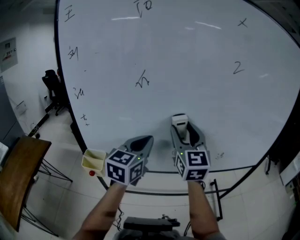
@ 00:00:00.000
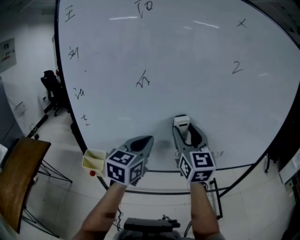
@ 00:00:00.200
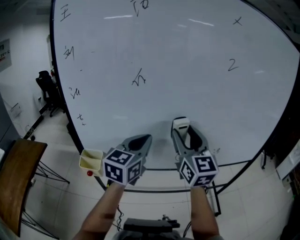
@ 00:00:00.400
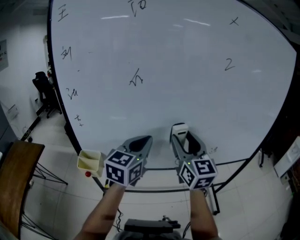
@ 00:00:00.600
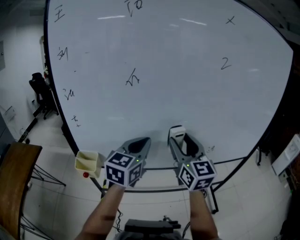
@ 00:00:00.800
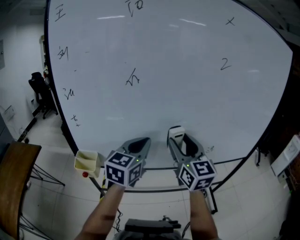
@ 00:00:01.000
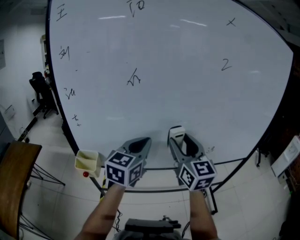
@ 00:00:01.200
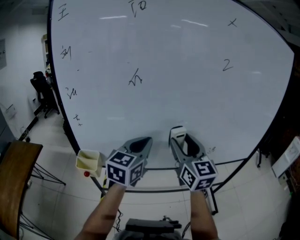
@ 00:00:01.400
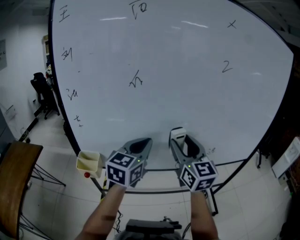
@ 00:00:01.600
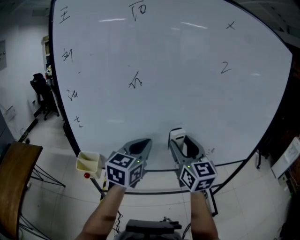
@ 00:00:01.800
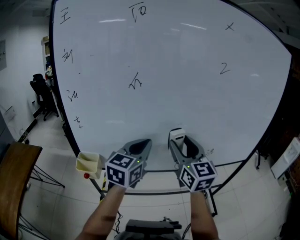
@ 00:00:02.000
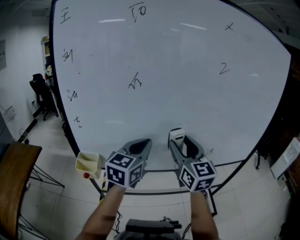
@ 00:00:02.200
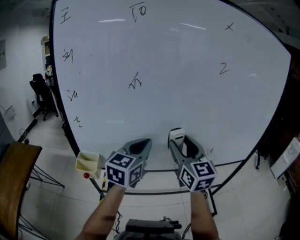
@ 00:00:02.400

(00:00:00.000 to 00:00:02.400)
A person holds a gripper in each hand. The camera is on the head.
00:00:00.000 - 00:00:01.200: The right gripper changes place by approximately 5 cm.
00:00:01.200 - 00:00:02.400: Neither gripper changes place.

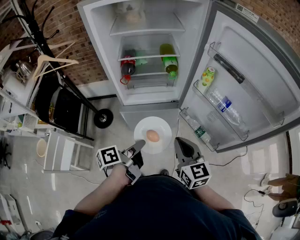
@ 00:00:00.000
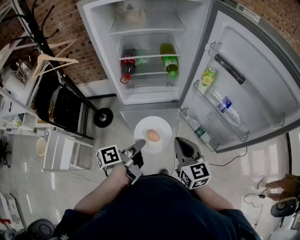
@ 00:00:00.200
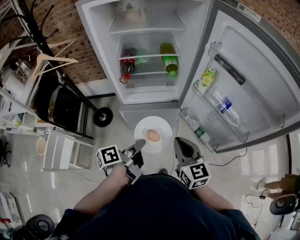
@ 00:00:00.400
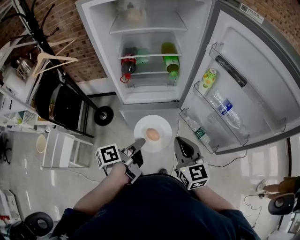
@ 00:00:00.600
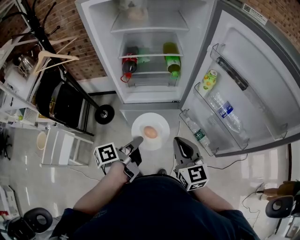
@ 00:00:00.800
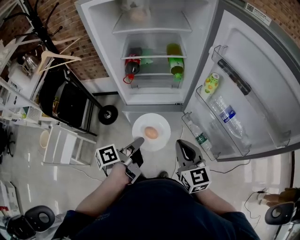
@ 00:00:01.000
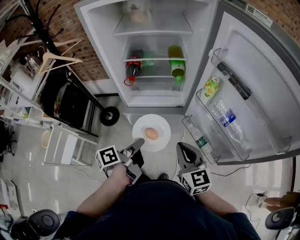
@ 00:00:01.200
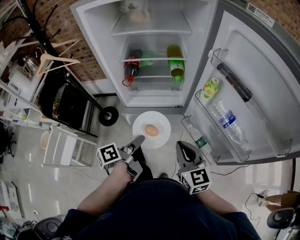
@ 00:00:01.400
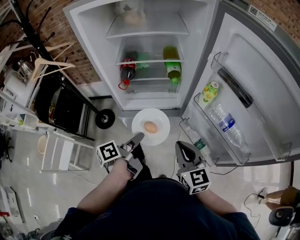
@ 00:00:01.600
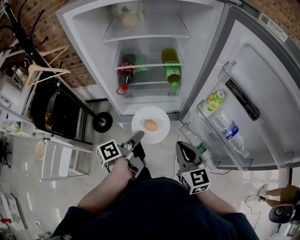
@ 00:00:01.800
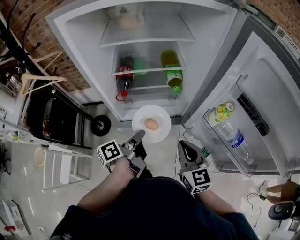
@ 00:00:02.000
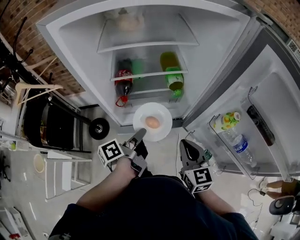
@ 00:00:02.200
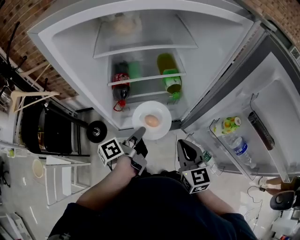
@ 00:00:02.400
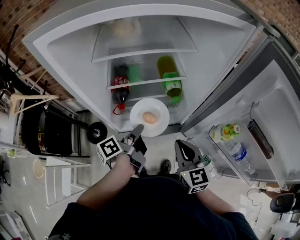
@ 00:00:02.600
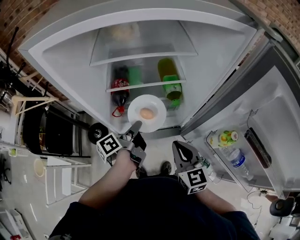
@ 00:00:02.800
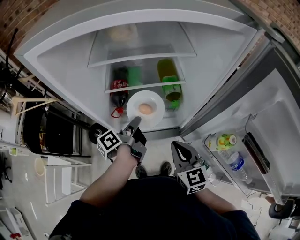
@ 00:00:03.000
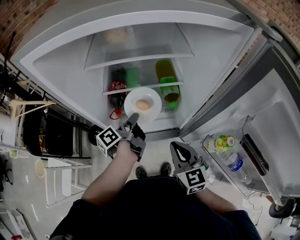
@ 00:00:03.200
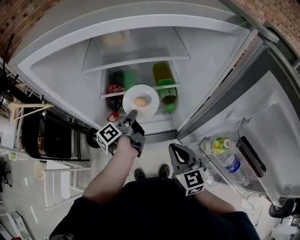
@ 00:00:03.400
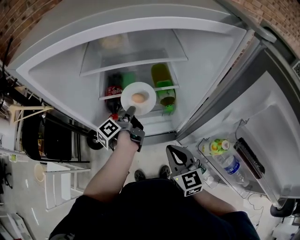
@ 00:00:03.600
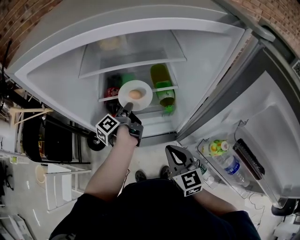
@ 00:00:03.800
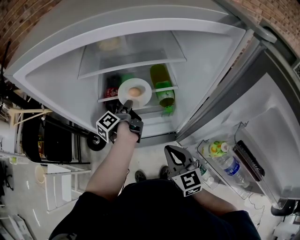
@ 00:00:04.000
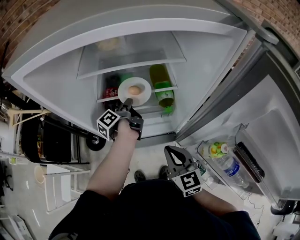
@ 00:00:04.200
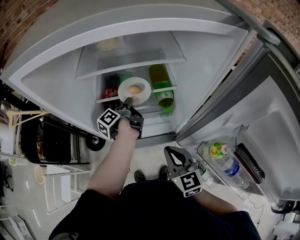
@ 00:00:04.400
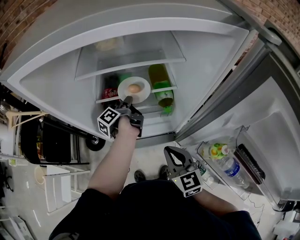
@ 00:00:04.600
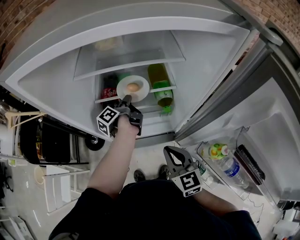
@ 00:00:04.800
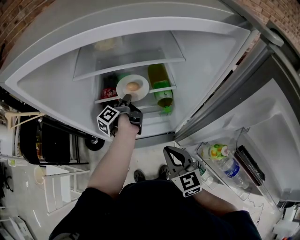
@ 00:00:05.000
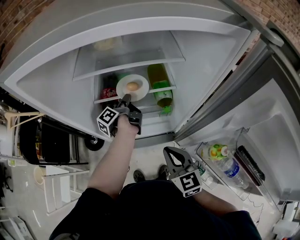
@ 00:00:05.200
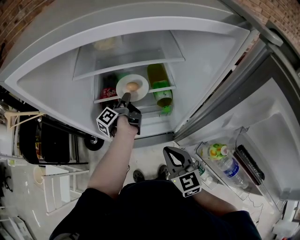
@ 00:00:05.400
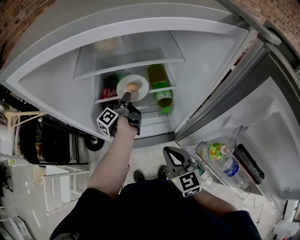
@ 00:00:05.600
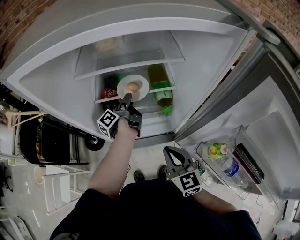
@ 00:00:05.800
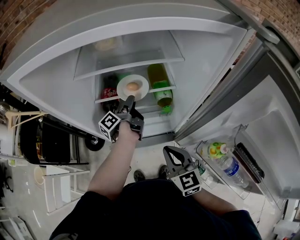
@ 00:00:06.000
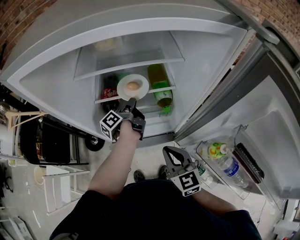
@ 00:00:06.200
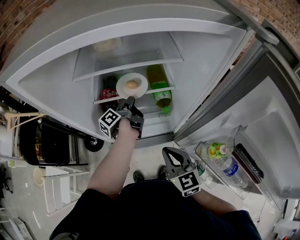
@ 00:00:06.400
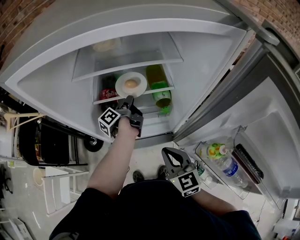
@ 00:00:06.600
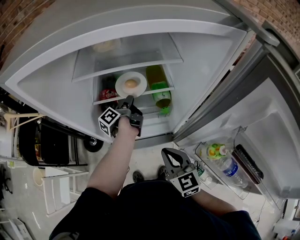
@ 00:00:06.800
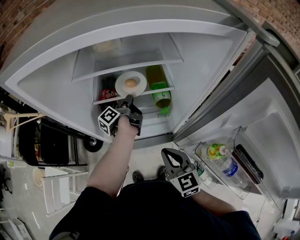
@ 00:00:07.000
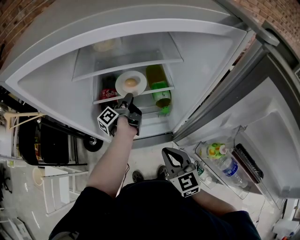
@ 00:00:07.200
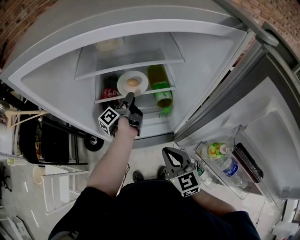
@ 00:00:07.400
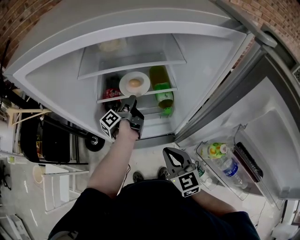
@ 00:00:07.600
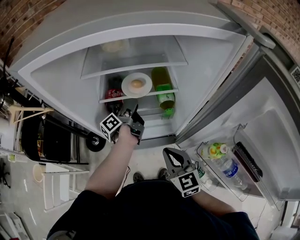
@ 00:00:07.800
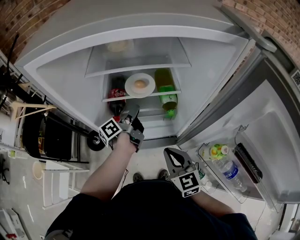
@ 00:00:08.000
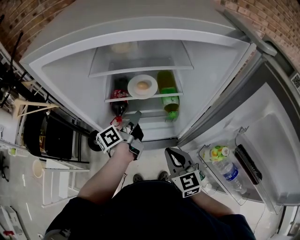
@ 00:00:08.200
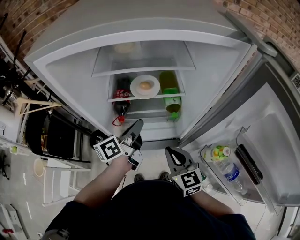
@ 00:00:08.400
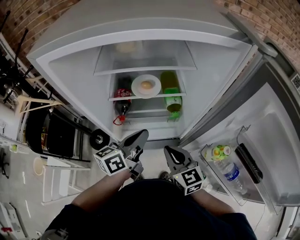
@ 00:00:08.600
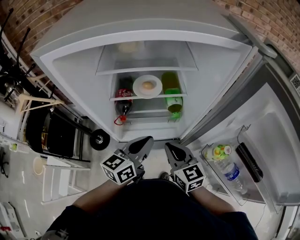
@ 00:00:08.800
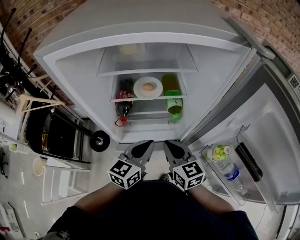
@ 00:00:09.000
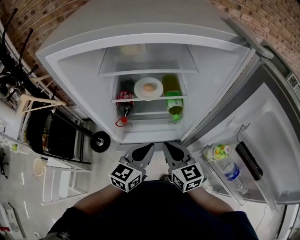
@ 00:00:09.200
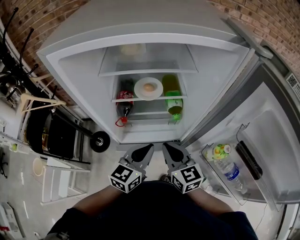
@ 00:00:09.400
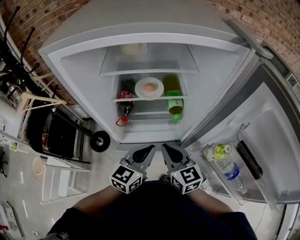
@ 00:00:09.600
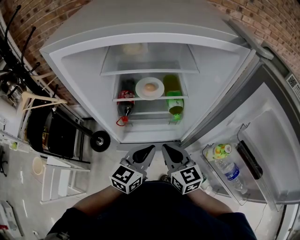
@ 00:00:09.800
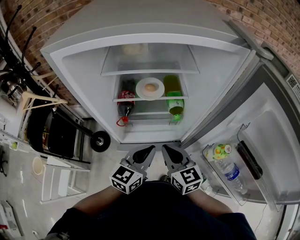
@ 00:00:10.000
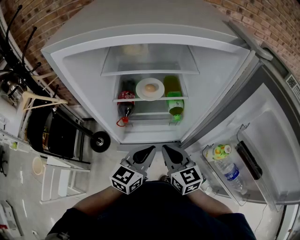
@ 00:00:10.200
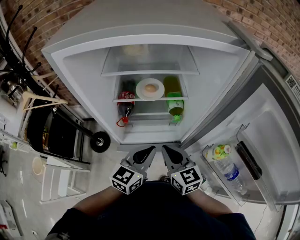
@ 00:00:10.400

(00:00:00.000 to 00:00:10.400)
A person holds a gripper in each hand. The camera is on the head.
00:00:00.000 - 00:00:01.400: The right gripper ends up roughly 5 cm from where it was.
00:00:01.400 - 00:00:03.000: The right gripper ends up approximately 20 cm from where it was.
00:00:07.400 - 00:00:09.000: The right gripper changes place by about 5 cm.

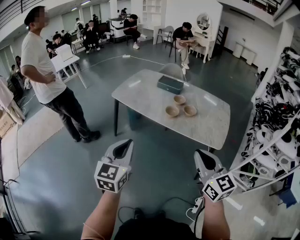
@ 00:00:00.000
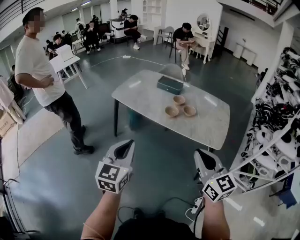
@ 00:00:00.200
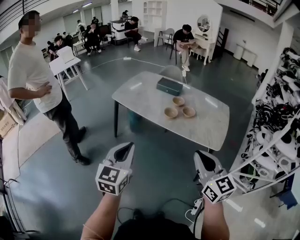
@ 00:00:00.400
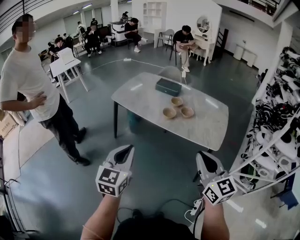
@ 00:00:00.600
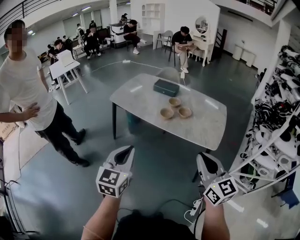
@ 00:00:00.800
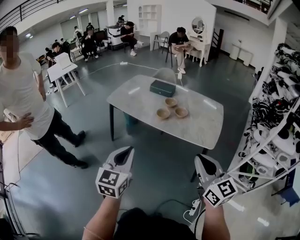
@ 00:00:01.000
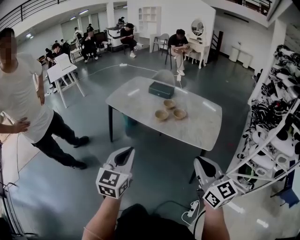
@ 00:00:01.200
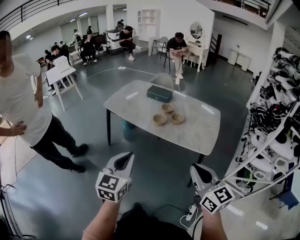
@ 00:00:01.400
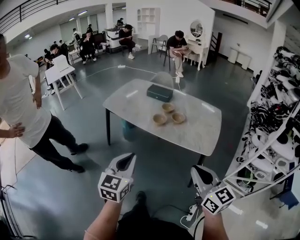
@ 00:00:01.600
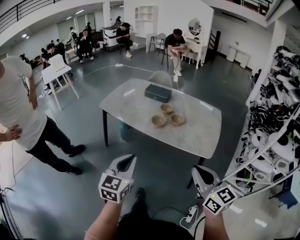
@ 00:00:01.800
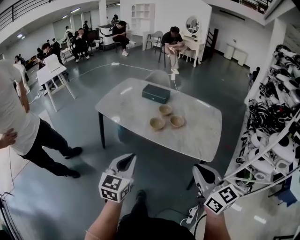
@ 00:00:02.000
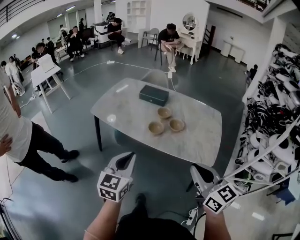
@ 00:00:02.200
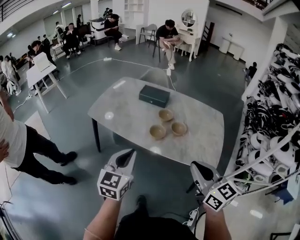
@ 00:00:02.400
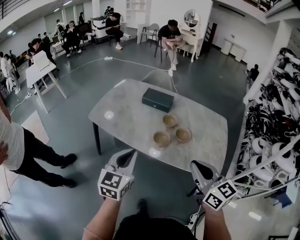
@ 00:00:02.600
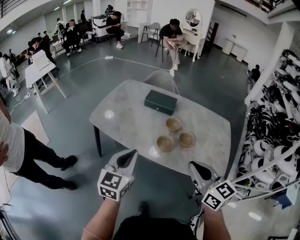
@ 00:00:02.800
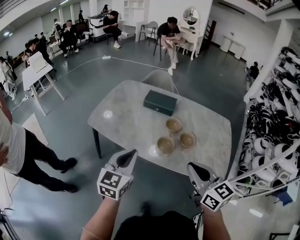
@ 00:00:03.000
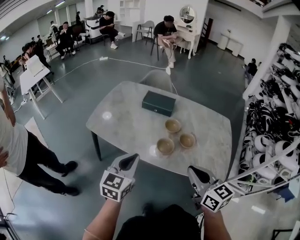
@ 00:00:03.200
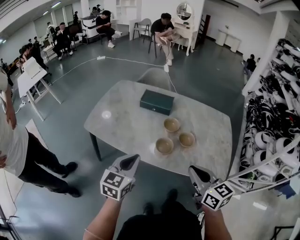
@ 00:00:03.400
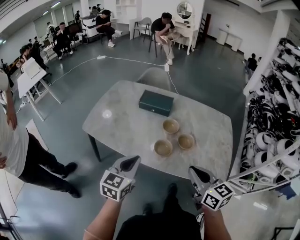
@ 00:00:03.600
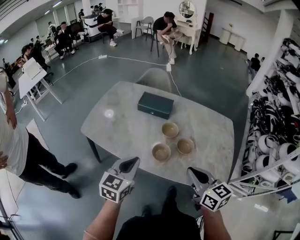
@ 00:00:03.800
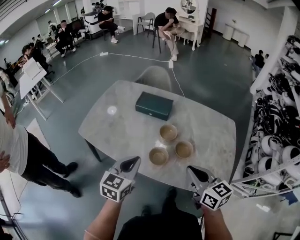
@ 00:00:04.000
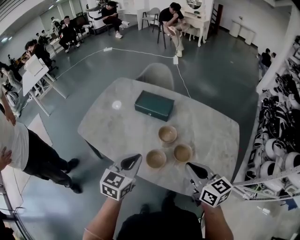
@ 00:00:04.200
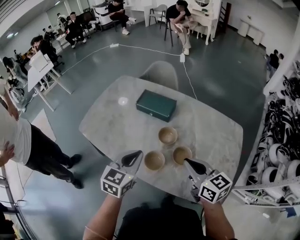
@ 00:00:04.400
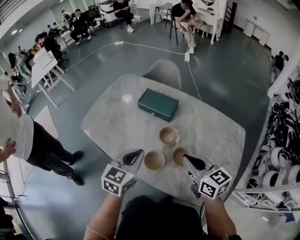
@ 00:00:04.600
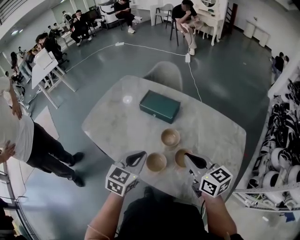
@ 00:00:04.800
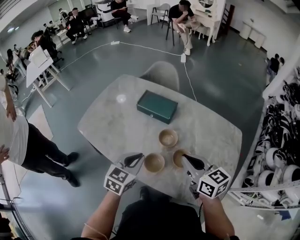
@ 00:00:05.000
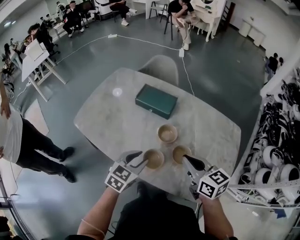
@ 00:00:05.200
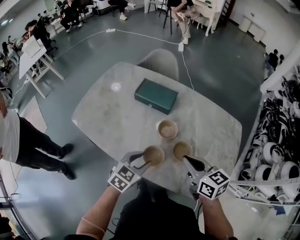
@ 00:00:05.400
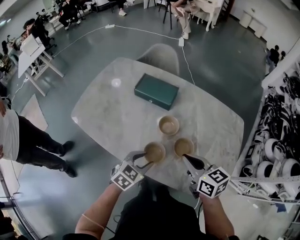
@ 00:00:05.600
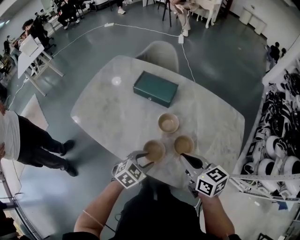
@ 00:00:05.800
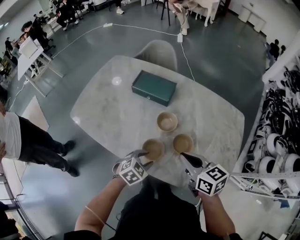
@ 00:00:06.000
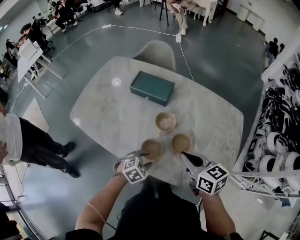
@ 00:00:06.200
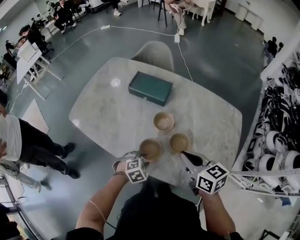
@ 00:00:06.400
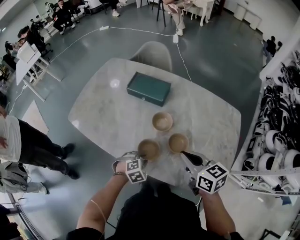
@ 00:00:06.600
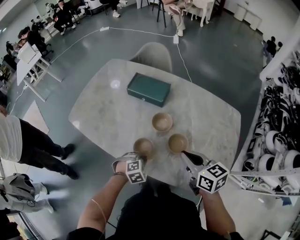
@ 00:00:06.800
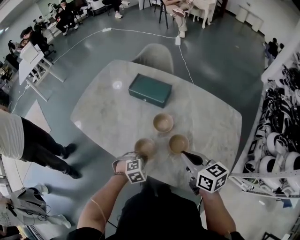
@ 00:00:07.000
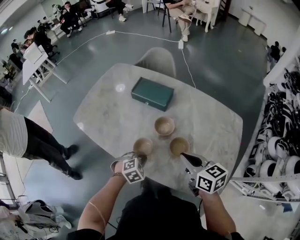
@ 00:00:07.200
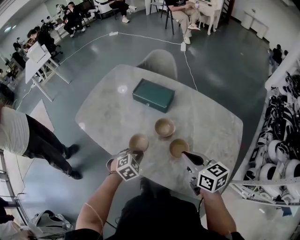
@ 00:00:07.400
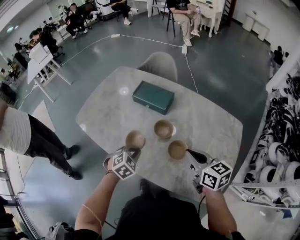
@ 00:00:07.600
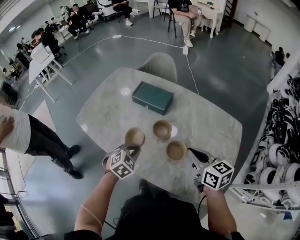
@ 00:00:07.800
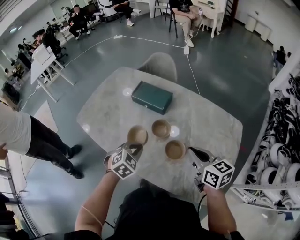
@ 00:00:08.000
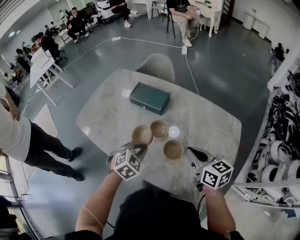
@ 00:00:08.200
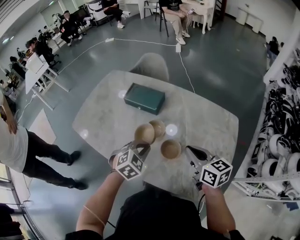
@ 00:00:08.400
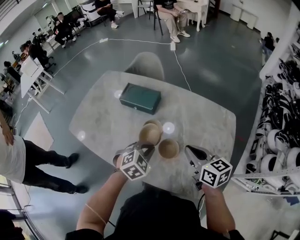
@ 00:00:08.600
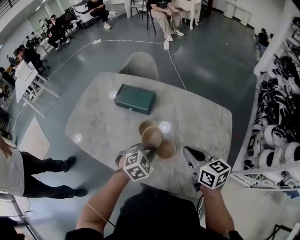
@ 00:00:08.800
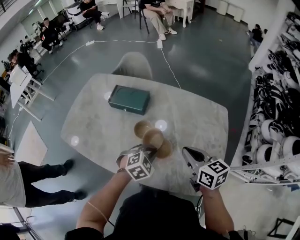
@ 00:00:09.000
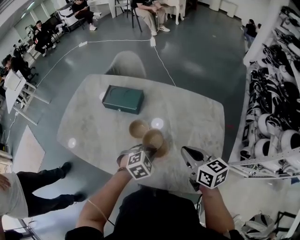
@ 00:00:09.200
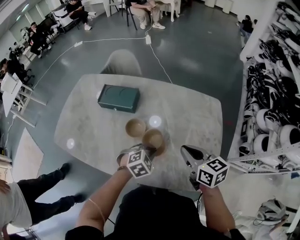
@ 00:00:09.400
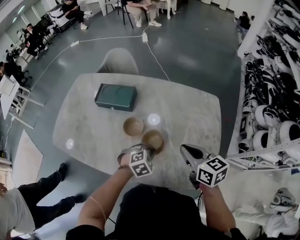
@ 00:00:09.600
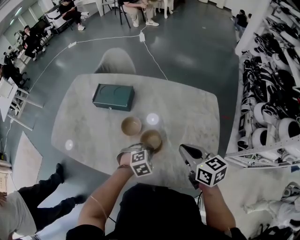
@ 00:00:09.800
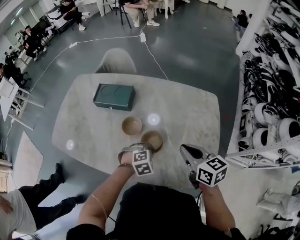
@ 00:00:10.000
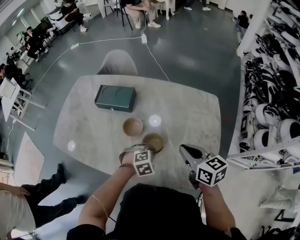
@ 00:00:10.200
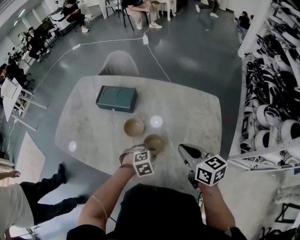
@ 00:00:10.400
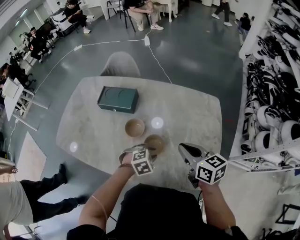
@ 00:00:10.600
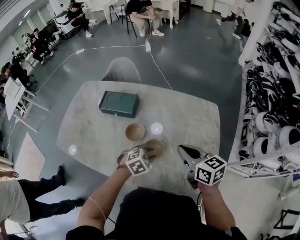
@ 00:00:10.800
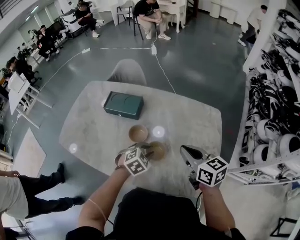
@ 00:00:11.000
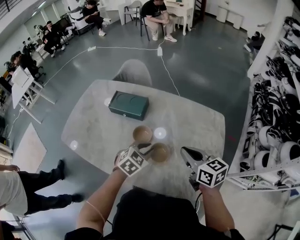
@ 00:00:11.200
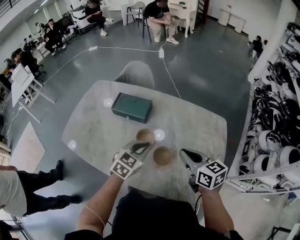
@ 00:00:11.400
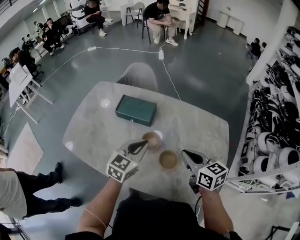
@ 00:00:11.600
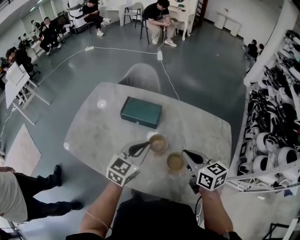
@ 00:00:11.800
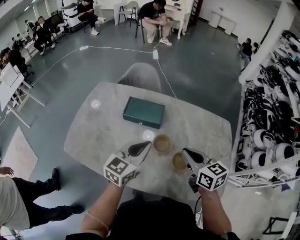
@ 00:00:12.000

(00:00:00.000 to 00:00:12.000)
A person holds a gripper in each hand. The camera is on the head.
00:00:00.000 - 00:00:01.600: Both grippers move to the right, approximately 10 cm.
00:00:01.600 - 00:00:03.000: Both grippers are carried forward, some 40 cm.
00:00:03.000 - 00:00:04.400: The right gripper moves forward, to the right and downward, some 30 cm. Meanwhile the left gripper travels forward and to the right by roughly 25 cm.
00:00:04.400 - 00:00:06.000: The right gripper heads downward, covering roughly 5 cm. Meanwhile the left gripper is displaced downward by approximately 20 cm, swivels about 40 degrees, and opens its fingers.
00:00:06.000 - 00:00:07.600: The left gripper ends up about 5 cm from where it was, and closes its fingers. The right gripper moves to the right, about 5 cm.
00:00:07.600 - 00:00:09.000: The right gripper goes roughly 5 cm to the right; the left gripper goes approximately 15 cm to the right, and swivels approximately 20 degrees.
00:00:09.000 - 00:00:10.400: The left gripper is displaced downward by some 10 cm, and opens.
00:00:10.400 - 00:00:12.000: The right gripper goes about 20 cm to the left. Meanwhile the left gripper heads to the left and upward, covering roughly 35 cm, tips its fingers upward by approximately 60 degrees, and closes.
